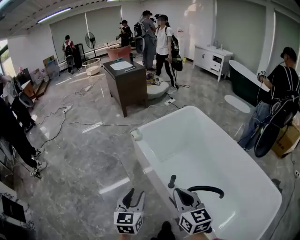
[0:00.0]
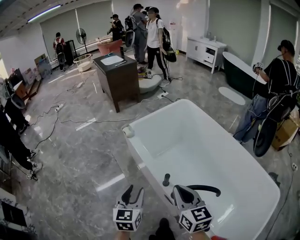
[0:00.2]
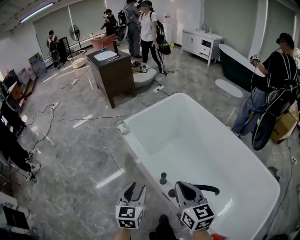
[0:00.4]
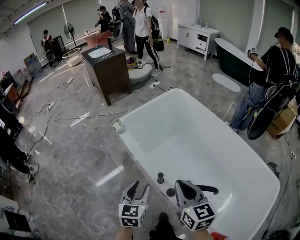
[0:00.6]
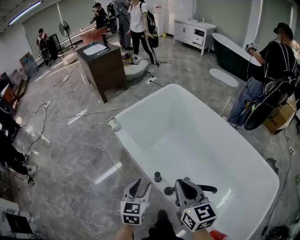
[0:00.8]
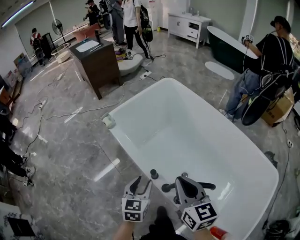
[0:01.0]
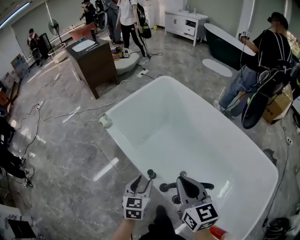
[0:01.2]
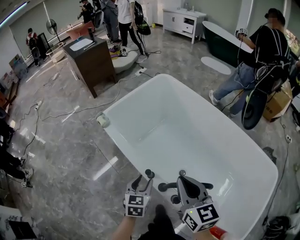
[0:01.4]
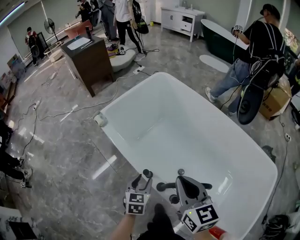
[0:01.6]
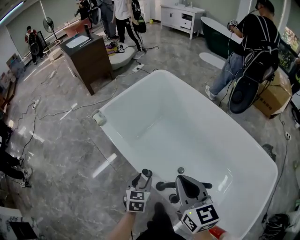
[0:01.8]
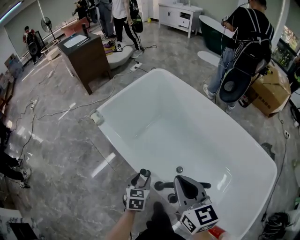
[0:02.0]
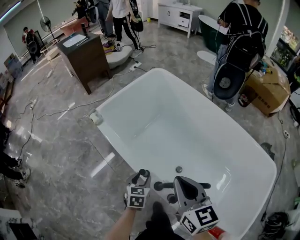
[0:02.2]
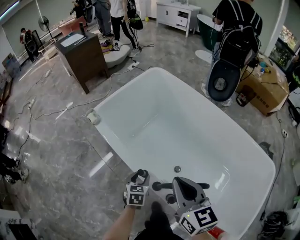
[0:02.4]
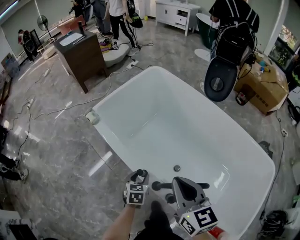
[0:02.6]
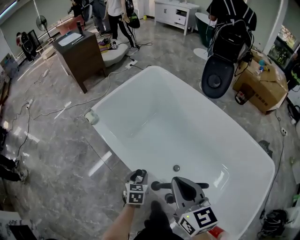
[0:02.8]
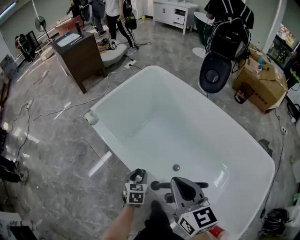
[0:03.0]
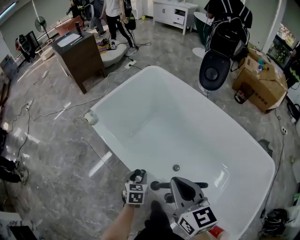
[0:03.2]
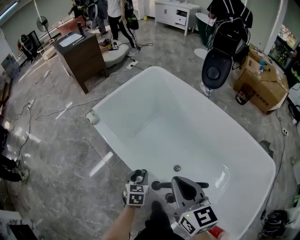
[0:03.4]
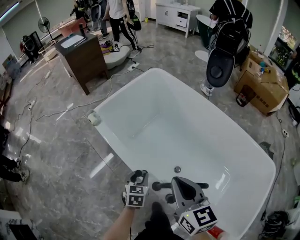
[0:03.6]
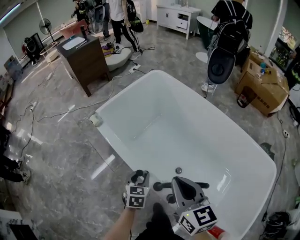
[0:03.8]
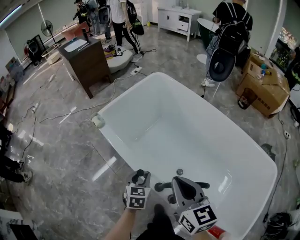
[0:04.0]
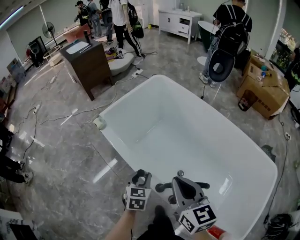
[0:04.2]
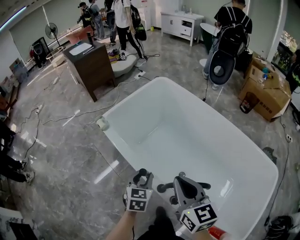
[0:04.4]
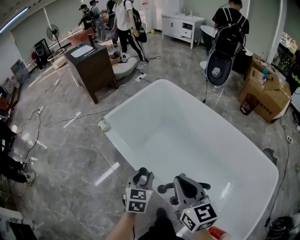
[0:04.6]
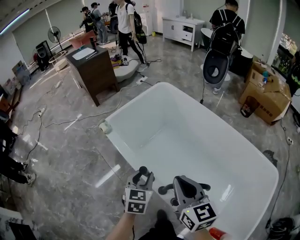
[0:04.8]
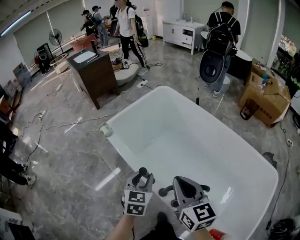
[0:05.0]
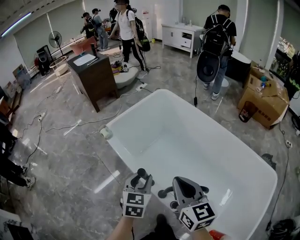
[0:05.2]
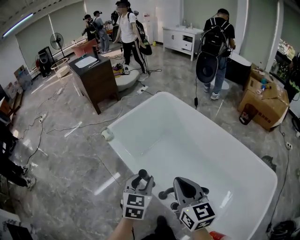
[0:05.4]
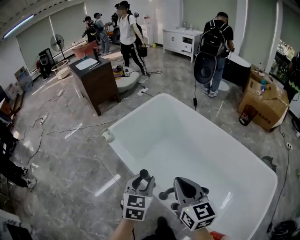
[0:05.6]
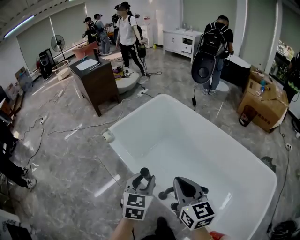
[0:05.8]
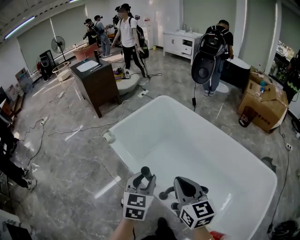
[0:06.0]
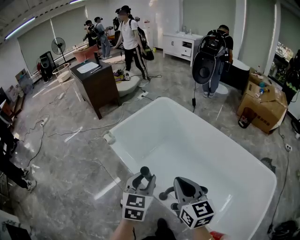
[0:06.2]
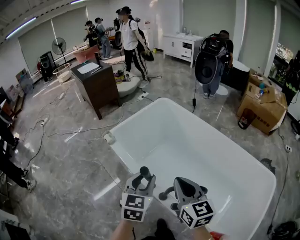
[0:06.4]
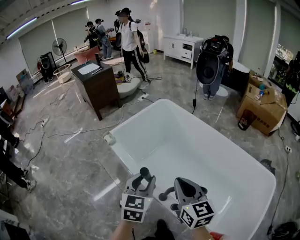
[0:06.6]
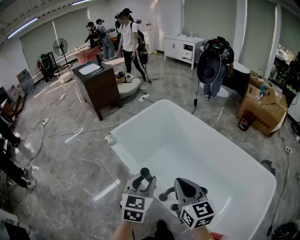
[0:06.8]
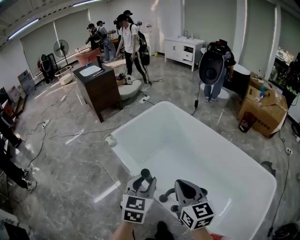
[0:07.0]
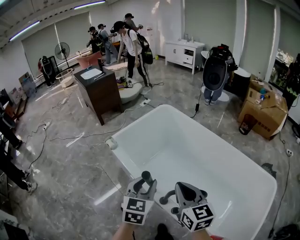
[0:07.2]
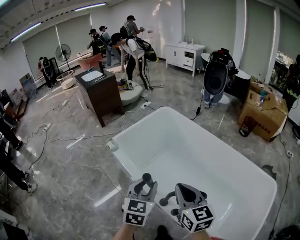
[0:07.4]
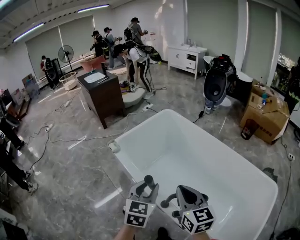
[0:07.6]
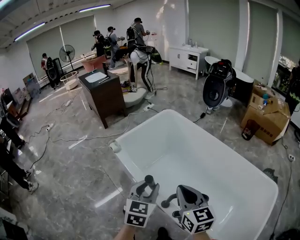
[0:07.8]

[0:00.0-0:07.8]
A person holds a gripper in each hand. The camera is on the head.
0:00.0 to 0:01.6: The right gripper shifts some 25 cm to the right and forward. Meanwhile the left gripper goes approximately 35 cm to the right, downward and forward, and changes its angle by about 30 degrees.
0:01.6 to 0:03.2: The left gripper shifts some 10 cm downward.
0:03.2 to 0:04.6: The left gripper moves upward, roughly 20 cm. Meanwhile the right gripper moves upward, about 5 cm.
0:04.6 to 0:06.2: The right gripper travels upward by about 5 cm, while the left gripper goes some 15 cm upward and backward.
0:06.2 to 0:07.8: The grippers move only a little.

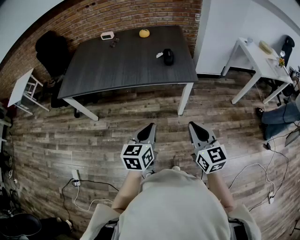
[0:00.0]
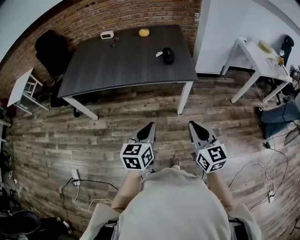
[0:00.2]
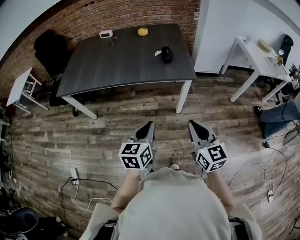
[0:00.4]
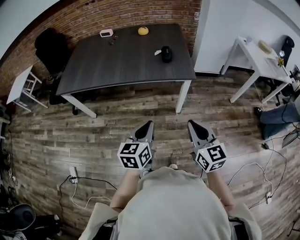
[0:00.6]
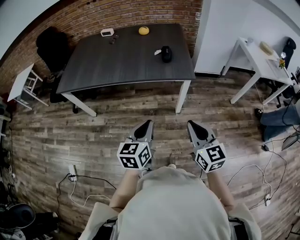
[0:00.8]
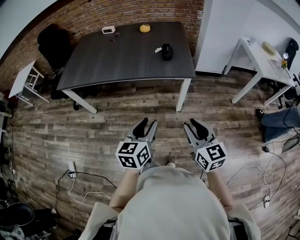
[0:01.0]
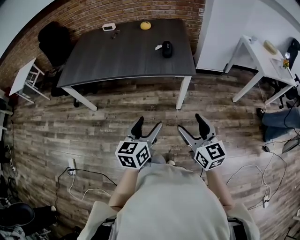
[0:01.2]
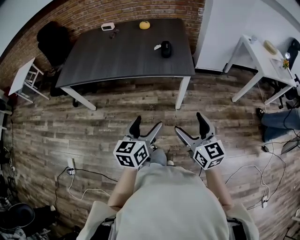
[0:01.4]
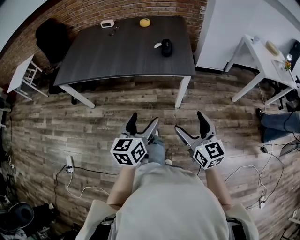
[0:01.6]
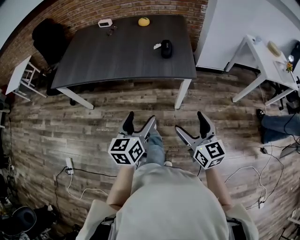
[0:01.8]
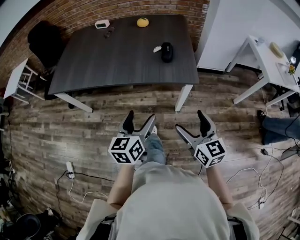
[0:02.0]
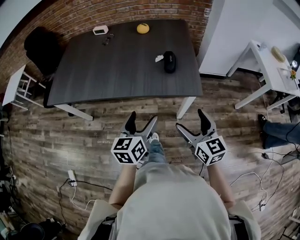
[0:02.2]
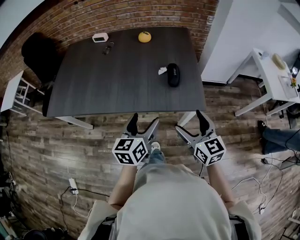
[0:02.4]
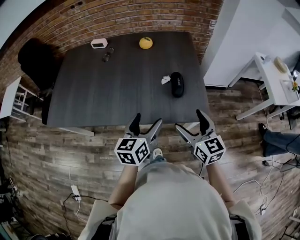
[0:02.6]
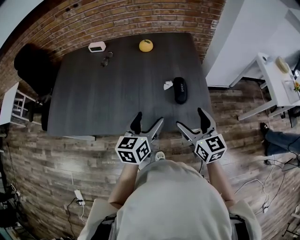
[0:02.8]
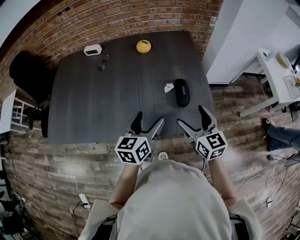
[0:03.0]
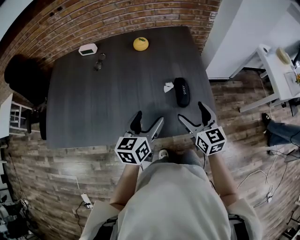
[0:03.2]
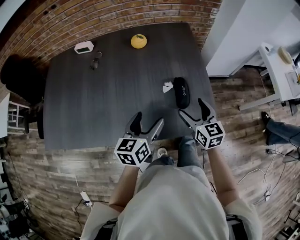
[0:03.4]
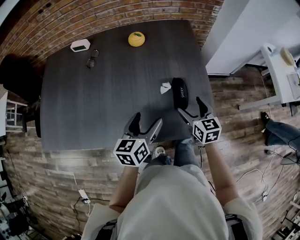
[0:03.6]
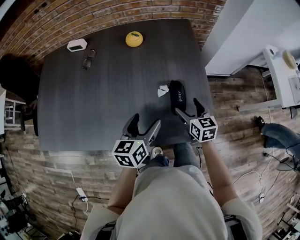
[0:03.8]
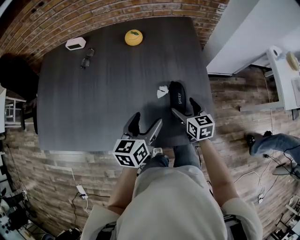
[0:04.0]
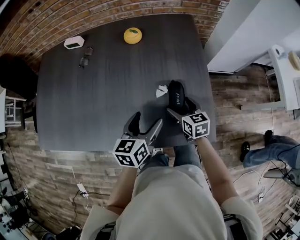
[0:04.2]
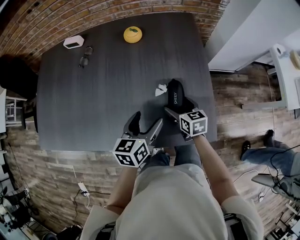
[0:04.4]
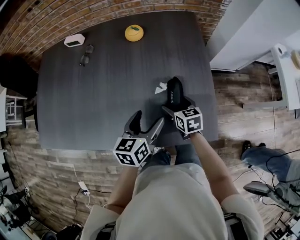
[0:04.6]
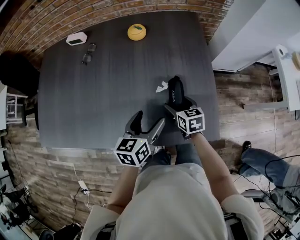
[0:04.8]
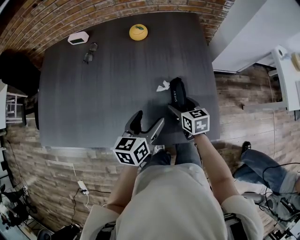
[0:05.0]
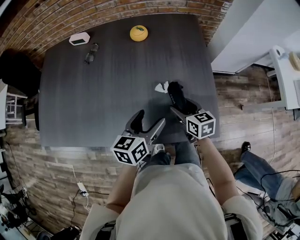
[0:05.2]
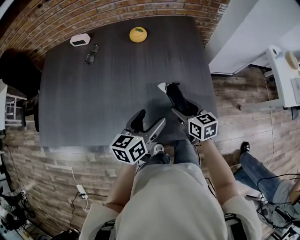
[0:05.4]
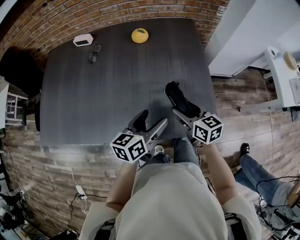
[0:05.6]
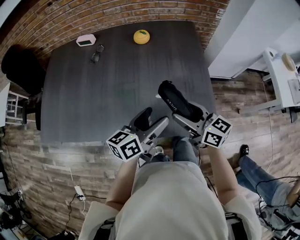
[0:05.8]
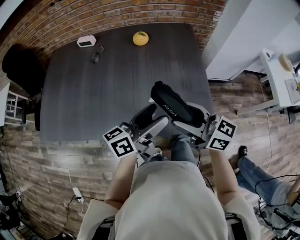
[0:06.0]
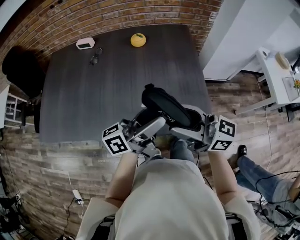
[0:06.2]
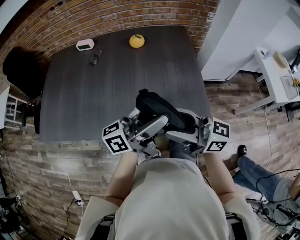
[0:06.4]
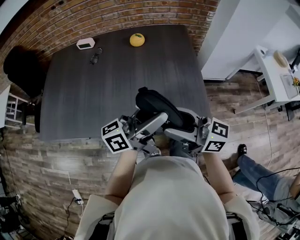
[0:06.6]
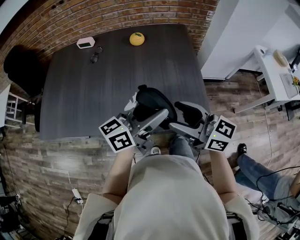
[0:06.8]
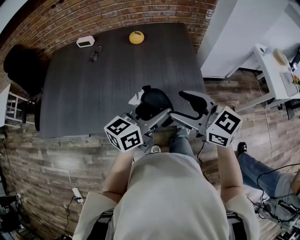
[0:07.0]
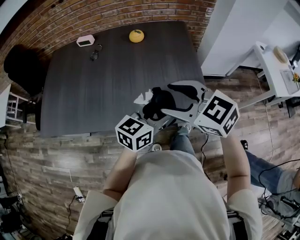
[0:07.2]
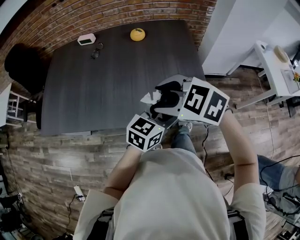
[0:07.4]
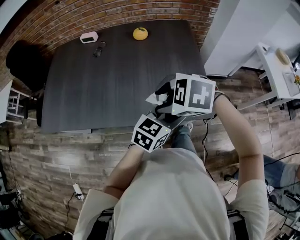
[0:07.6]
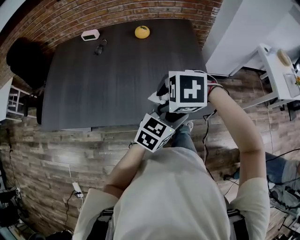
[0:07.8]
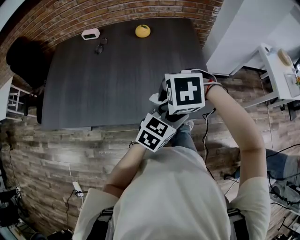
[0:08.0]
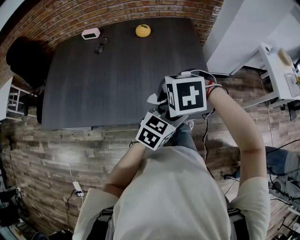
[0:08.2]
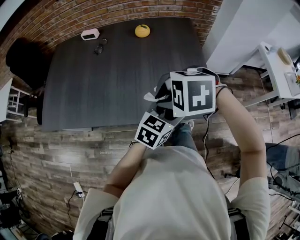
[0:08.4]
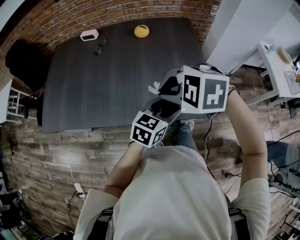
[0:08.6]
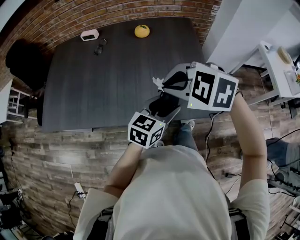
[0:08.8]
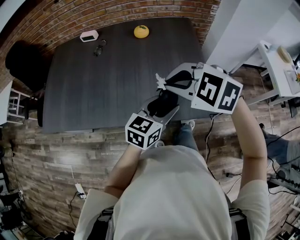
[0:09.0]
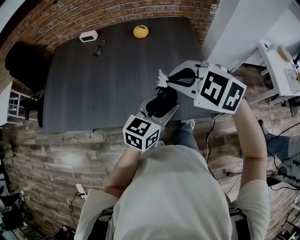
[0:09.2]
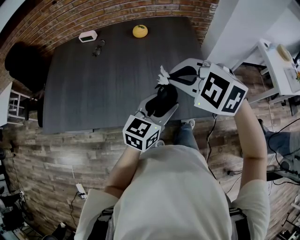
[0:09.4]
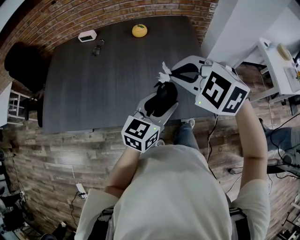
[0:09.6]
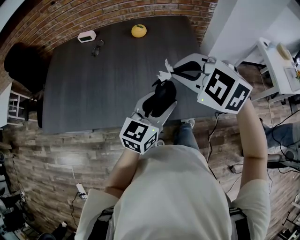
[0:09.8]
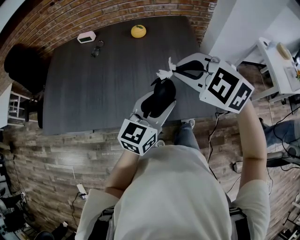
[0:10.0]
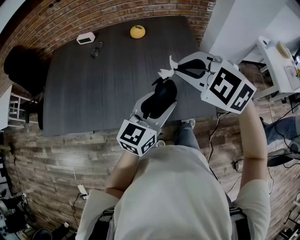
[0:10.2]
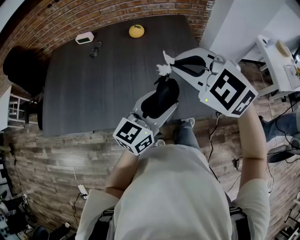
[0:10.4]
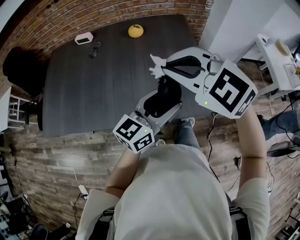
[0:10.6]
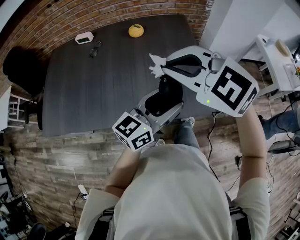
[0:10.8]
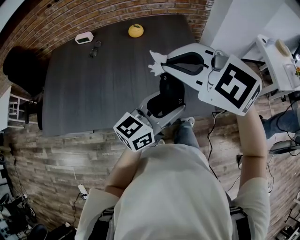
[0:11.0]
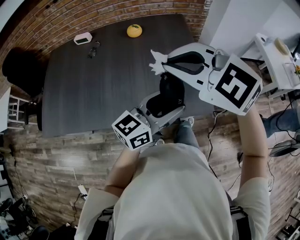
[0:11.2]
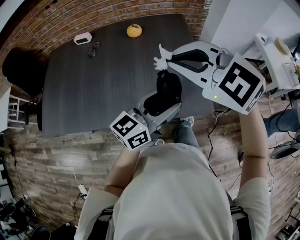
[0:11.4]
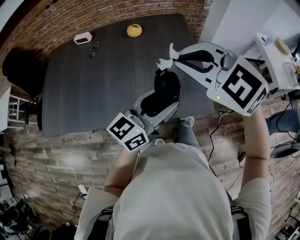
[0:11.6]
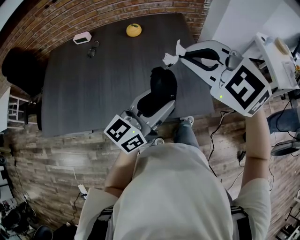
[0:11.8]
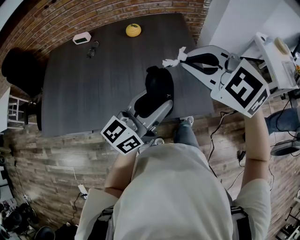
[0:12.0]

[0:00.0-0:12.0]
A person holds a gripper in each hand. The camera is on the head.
0:00.0 to 0:01.6: The left gripper opens up. Meanwhile the right gripper opens its fingers.
0:01.6 to 0:03.0: The two grippers travel together, forward, approximately 40 cm.
0:03.0 to 0:04.4: The right gripper travels downward and forward by approximately 25 cm, and changes its angle by some 30 degrees. The left gripper travels forward and downward by some 10 cm.
0:04.4 to 0:06.0: The left gripper heads upward and backward, covering roughly 15 cm, and tips its fingers upward by some 30 degrees, while the right gripper moves upward and backward, some 30 cm, and angles its fingers upward, by approximately 40 degrees.
0:06.0 to 0:07.6: The right gripper changes place by some 10 cm, and tips its fingers downward by some 60 degrees, while the left gripper changes place by approximately 10 cm, and changes its angle by some 50 degrees.
0:07.6 to 0:09.0: The right gripper is displaced upward by roughly 5 cm, and closes its fingers.
0:09.0 to 0:10.4: The two grippers go some 5 cm upward.
0:10.4 to 0:12.0: The grippers make only small movements.

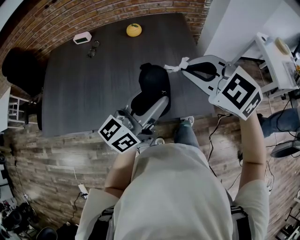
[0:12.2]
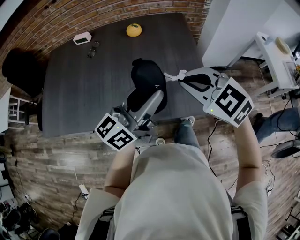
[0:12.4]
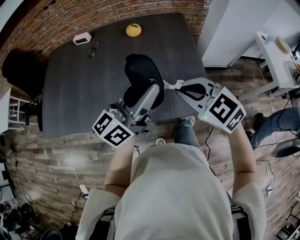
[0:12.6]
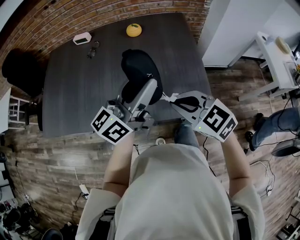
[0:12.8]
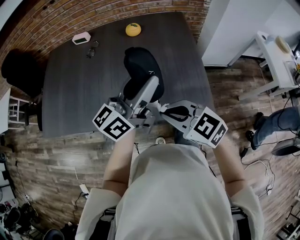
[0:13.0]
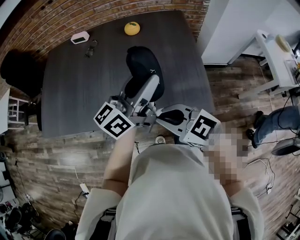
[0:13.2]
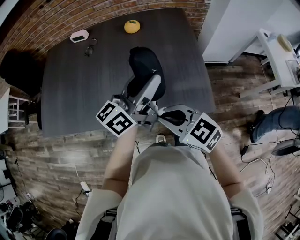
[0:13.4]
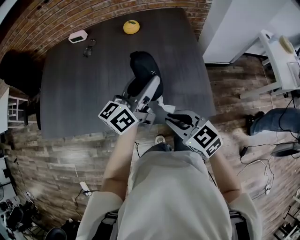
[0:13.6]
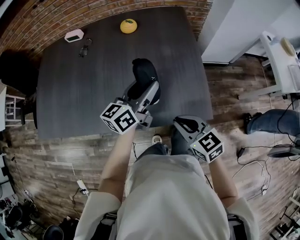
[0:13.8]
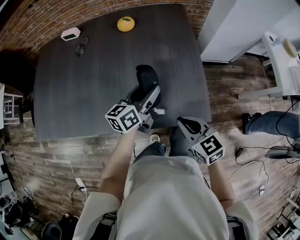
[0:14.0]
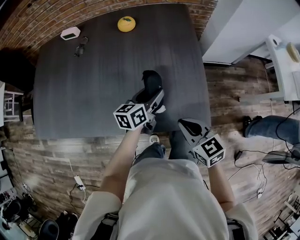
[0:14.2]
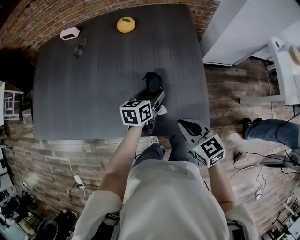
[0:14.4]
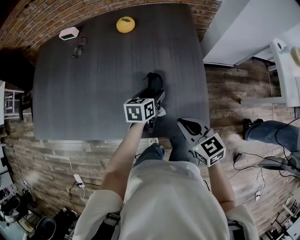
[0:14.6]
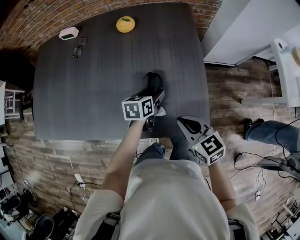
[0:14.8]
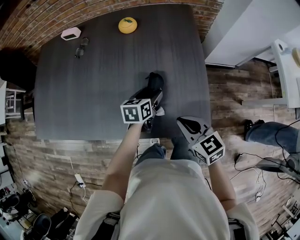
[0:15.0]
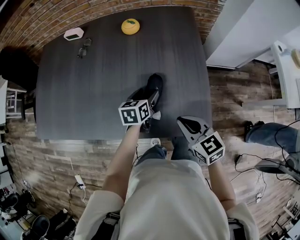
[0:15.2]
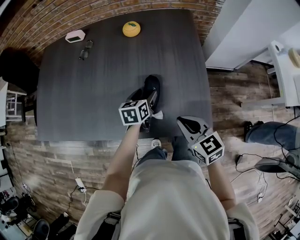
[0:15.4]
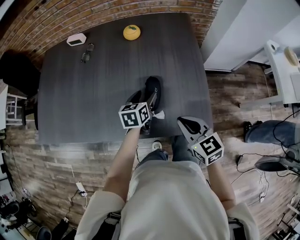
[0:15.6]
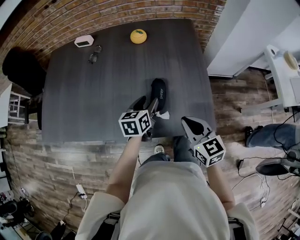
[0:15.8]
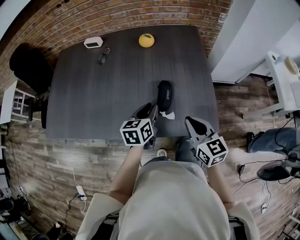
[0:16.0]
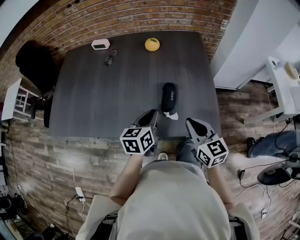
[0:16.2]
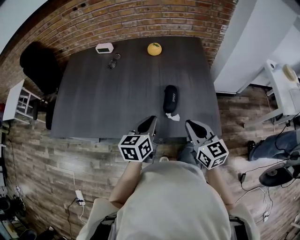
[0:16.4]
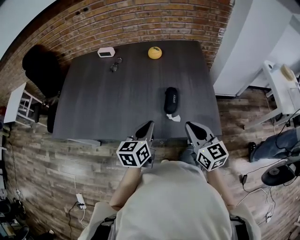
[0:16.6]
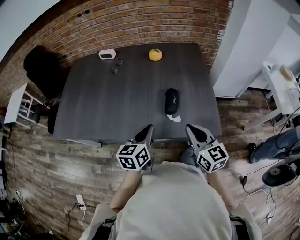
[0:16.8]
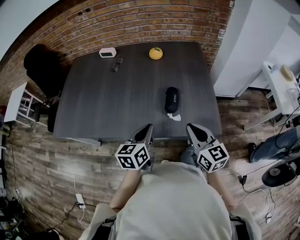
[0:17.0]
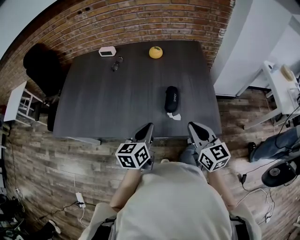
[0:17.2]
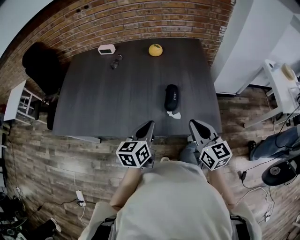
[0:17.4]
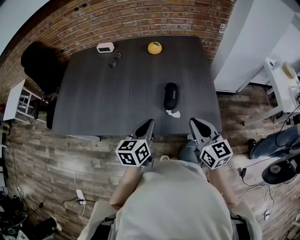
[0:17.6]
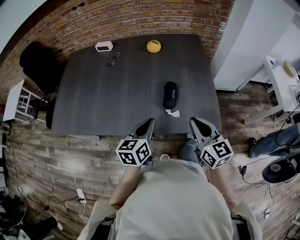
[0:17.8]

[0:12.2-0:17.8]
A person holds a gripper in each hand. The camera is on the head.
0:12.2 to 0:13.6: The left gripper travels forward and downward by some 10 cm, while the right gripper moves downward and backward, roughly 20 cm, and rotates approximately 30 degrees.
0:13.6 to 0:15.0: The right gripper travels to the right, forward and downward by roughly 15 cm, while the left gripper goes some 25 cm downward, and tilts its fingers about 50 degrees downward.
0:15.0 to 0:16.4: The left gripper travels upward, backward and to the left by about 25 cm, and closes up. Meanwhile the right gripper is displaced upward, to the left and backward by approximately 10 cm, and rotates about 20 degrees.
0:16.4 to 0:17.8: The grippers move only a little.
